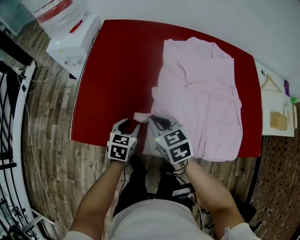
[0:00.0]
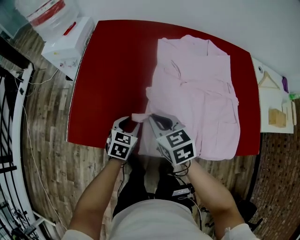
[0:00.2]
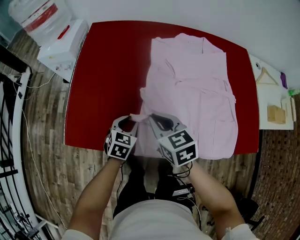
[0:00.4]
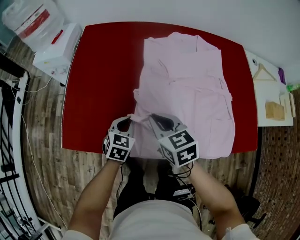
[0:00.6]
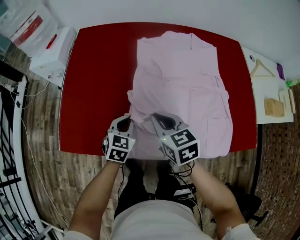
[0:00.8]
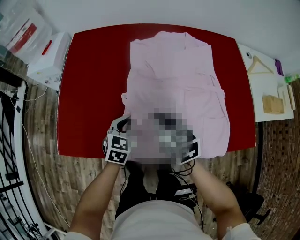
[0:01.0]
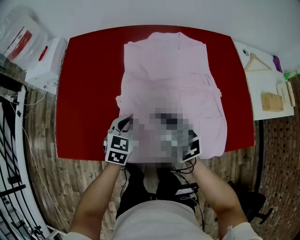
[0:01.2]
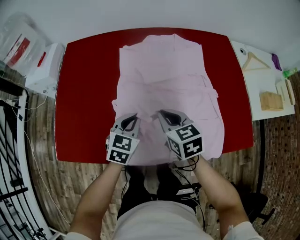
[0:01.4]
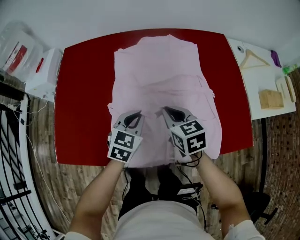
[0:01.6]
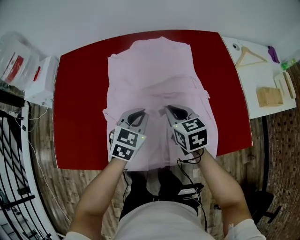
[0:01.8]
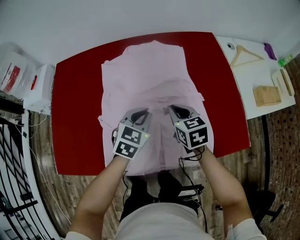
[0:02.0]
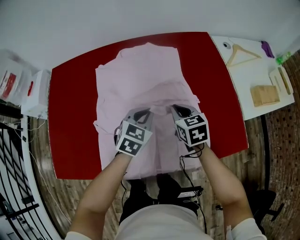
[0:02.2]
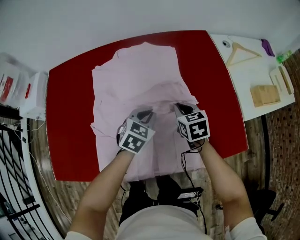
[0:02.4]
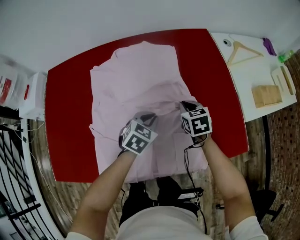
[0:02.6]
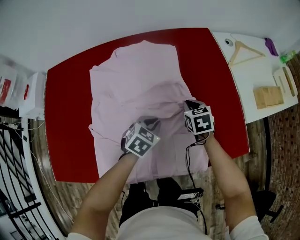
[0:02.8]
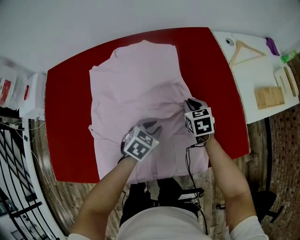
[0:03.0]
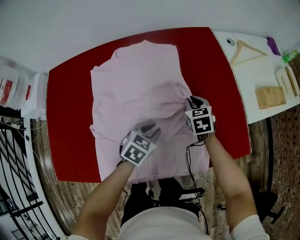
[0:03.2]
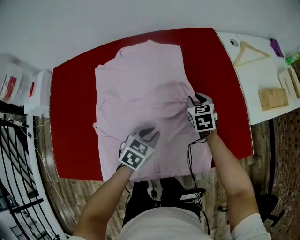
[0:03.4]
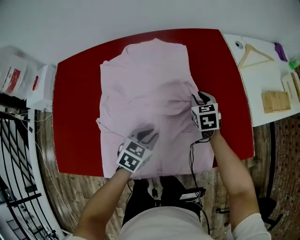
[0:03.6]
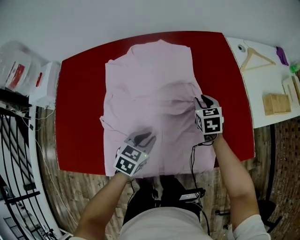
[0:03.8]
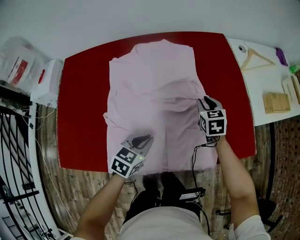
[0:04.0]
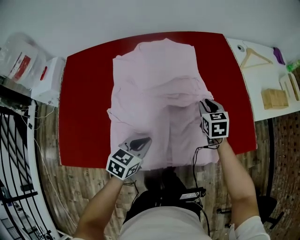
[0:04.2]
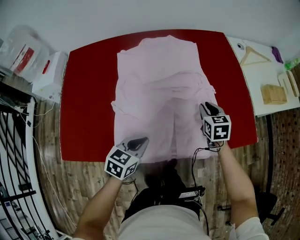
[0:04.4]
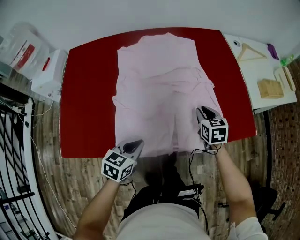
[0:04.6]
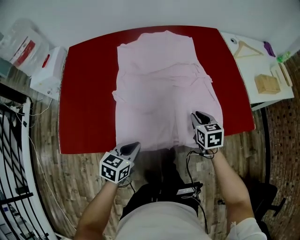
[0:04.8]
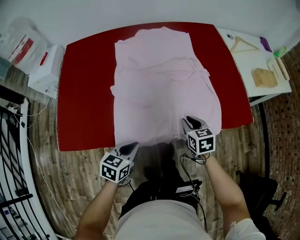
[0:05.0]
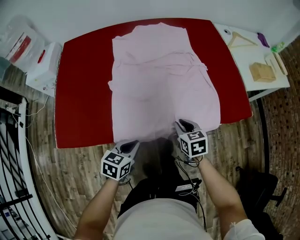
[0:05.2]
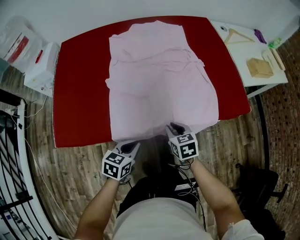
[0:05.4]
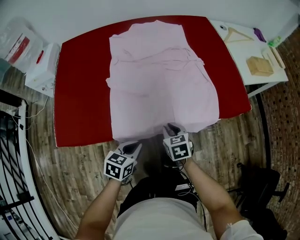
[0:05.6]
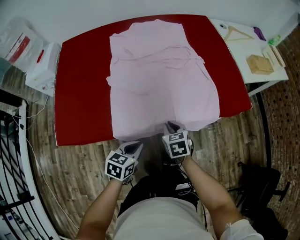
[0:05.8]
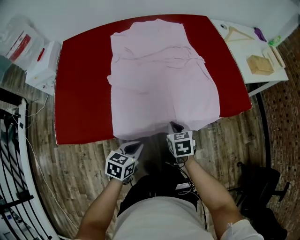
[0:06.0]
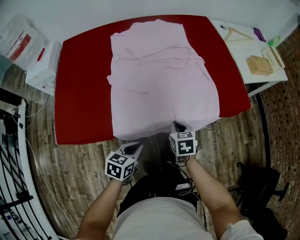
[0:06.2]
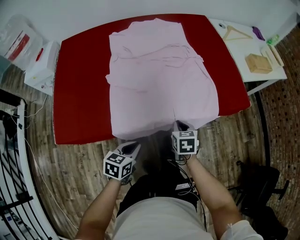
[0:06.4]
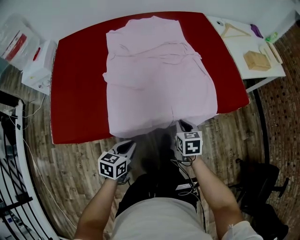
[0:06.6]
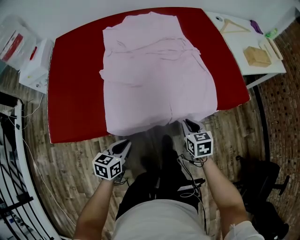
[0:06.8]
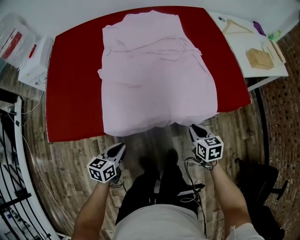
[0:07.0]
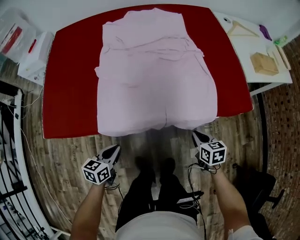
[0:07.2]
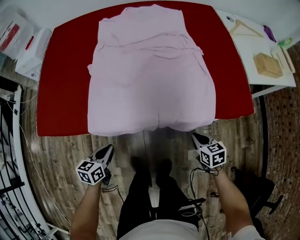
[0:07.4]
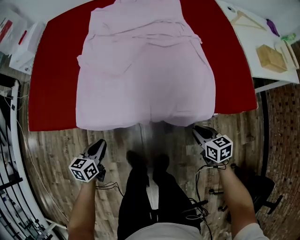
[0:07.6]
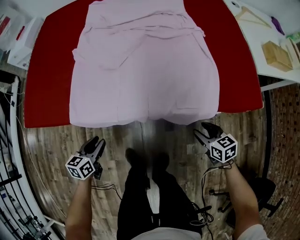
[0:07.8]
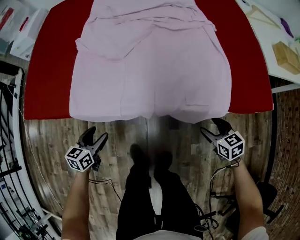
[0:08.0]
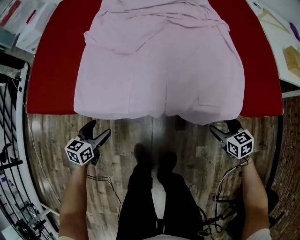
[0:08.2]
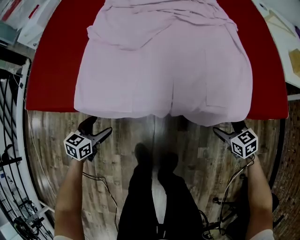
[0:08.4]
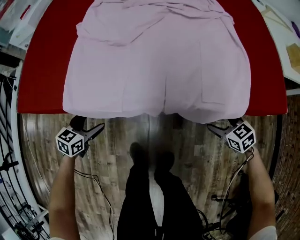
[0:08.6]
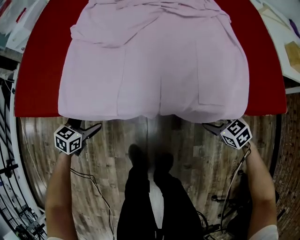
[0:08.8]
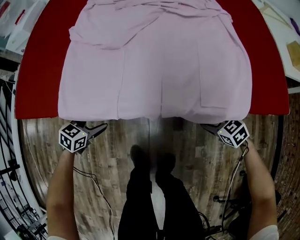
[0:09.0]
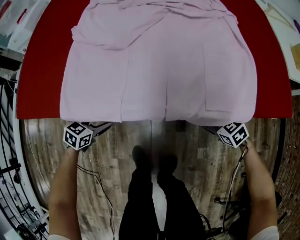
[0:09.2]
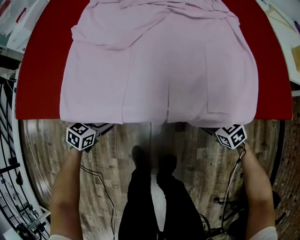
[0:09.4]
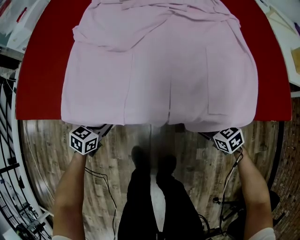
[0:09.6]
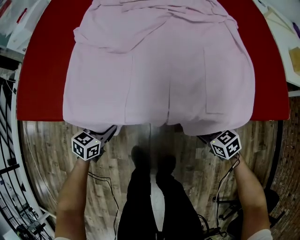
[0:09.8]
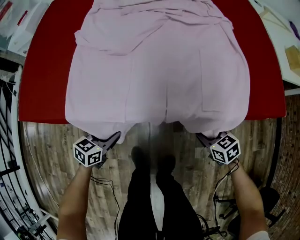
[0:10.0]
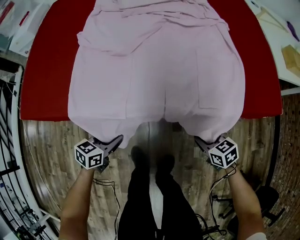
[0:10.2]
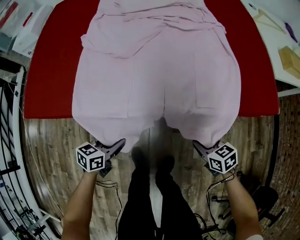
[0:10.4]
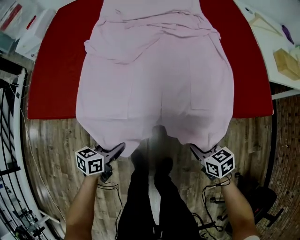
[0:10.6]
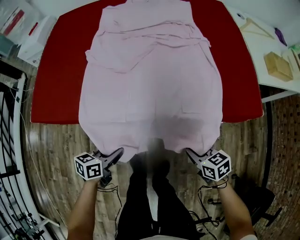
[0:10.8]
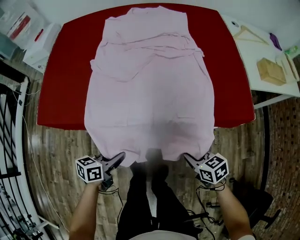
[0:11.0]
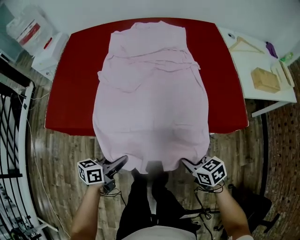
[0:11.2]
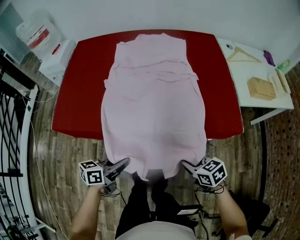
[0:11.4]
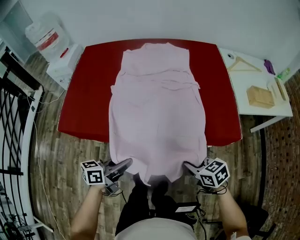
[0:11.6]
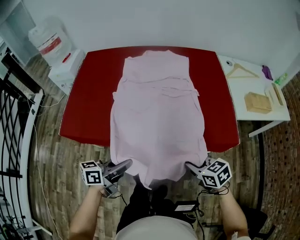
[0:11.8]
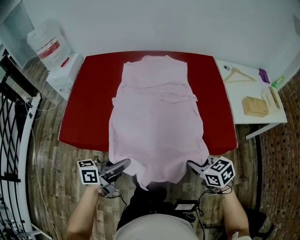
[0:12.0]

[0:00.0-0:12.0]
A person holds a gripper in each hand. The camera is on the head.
0:00.0 to 0:01.6: The right gripper shifts roughly 25 cm to the right, while the left gripper heads to the right and upward, covering roughly 25 cm, swivels roughly 20 degrees, and closes its fingers.
0:01.6 to 0:03.0: The right gripper moves to the right, forward and downward, some 25 cm. The left gripper heads to the right and downward, covering approximately 20 cm, and turns by about 30 degrees.
0:03.0 to 0:04.4: The right gripper shifts some 10 cm backward, while the left gripper shifts roughly 20 cm backward and to the left, and rotates some 20 degrees.
0:04.4 to 0:06.0: The right gripper is displaced backward by some 25 cm; the left gripper moves backward, roughly 15 cm.
0:06.0 to 0:07.6: The left gripper shifts approximately 10 cm downward, and swivels approximately 30 degrees. Meanwhile the right gripper shifts by about 25 cm.
0:07.6 to 0:09.0: The grippers both shift downward and forward by some 15 cm. The left gripper turns by roughly 30 degrees, and opens up. The right gripper turns by some 30 degrees, and opens.
0:09.0 to 0:10.4: The right gripper moves backward, to the left and upward, some 10 cm, changes its angle by some 20 degrees, and closes. Meanwhile the left gripper travels to the right, backward and upward by roughly 15 cm, changes its angle by about 30 degrees, and closes up.
0:10.4 to 0:12.0: The two grippers go roughly 30 cm upward. The left gripper swivels approximately 30 degrees.

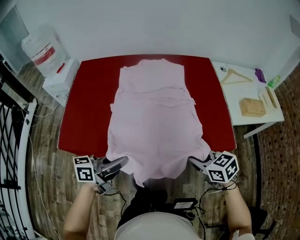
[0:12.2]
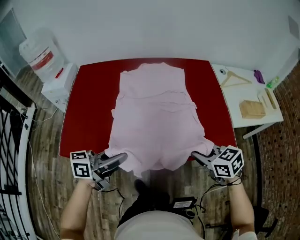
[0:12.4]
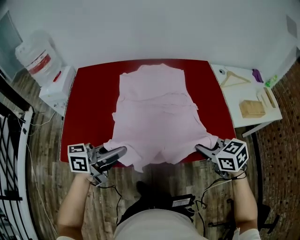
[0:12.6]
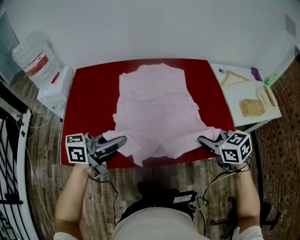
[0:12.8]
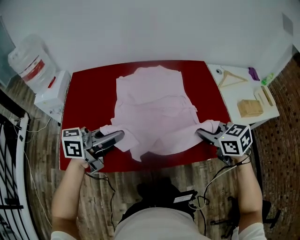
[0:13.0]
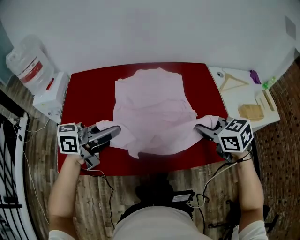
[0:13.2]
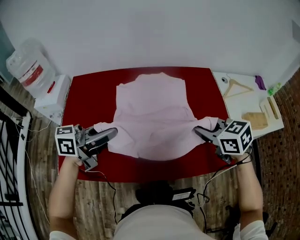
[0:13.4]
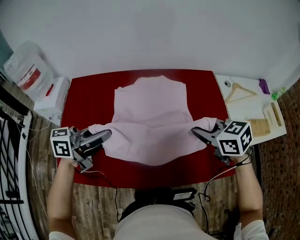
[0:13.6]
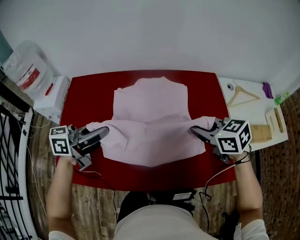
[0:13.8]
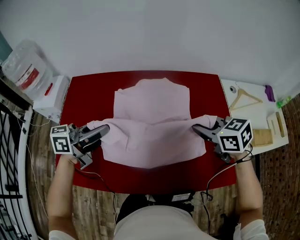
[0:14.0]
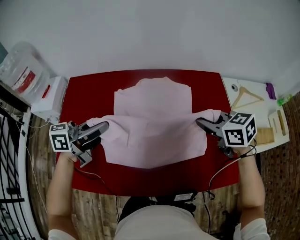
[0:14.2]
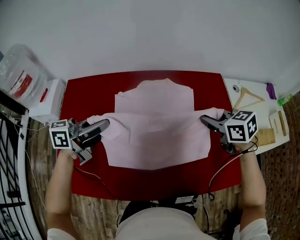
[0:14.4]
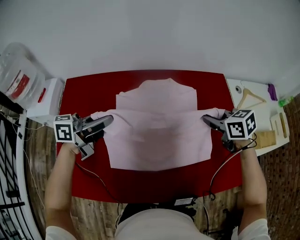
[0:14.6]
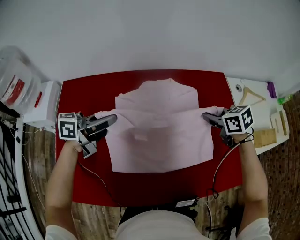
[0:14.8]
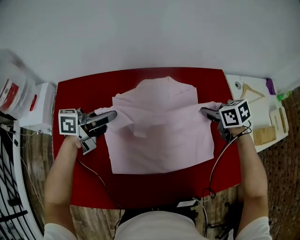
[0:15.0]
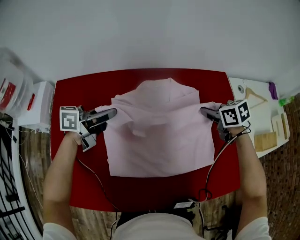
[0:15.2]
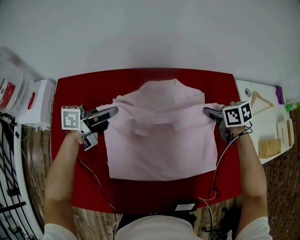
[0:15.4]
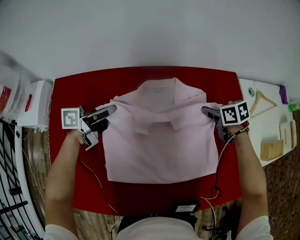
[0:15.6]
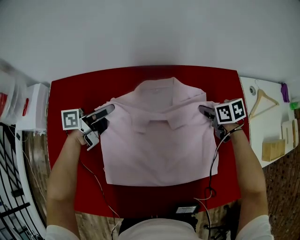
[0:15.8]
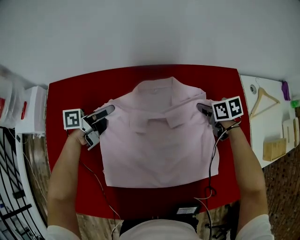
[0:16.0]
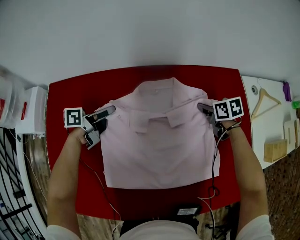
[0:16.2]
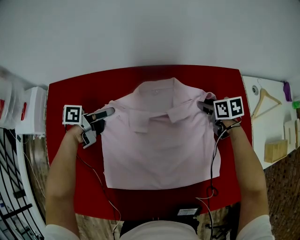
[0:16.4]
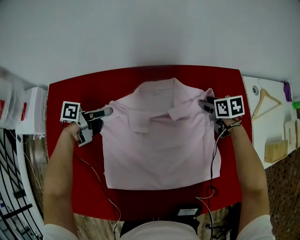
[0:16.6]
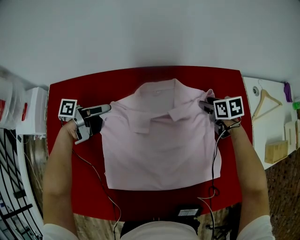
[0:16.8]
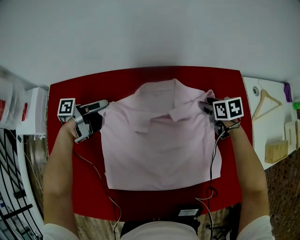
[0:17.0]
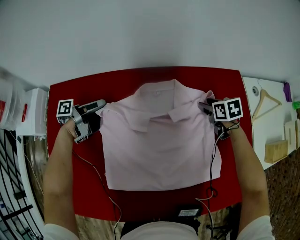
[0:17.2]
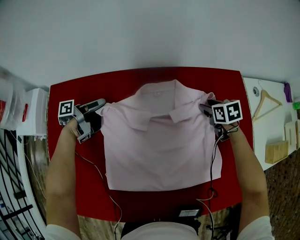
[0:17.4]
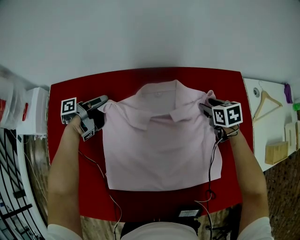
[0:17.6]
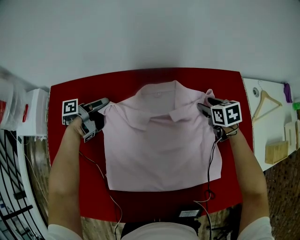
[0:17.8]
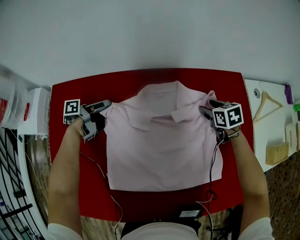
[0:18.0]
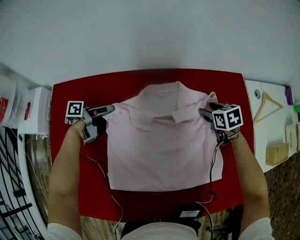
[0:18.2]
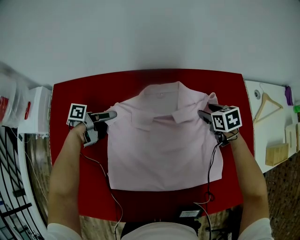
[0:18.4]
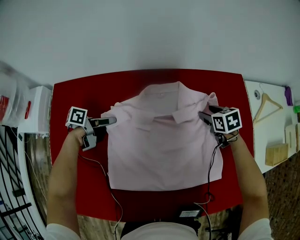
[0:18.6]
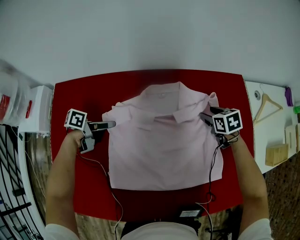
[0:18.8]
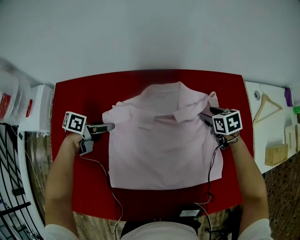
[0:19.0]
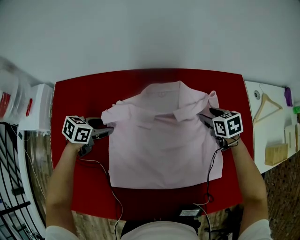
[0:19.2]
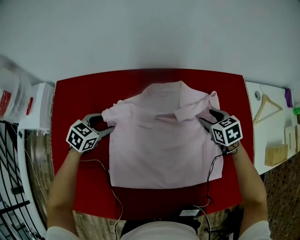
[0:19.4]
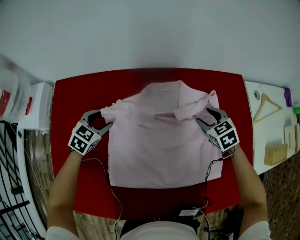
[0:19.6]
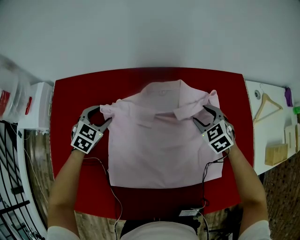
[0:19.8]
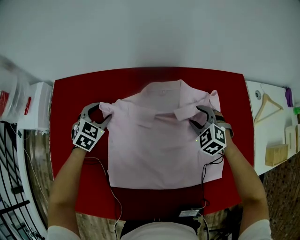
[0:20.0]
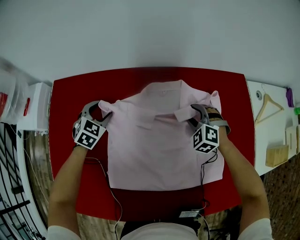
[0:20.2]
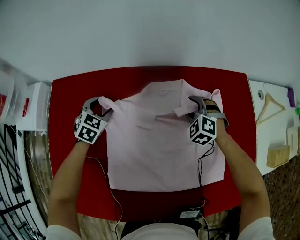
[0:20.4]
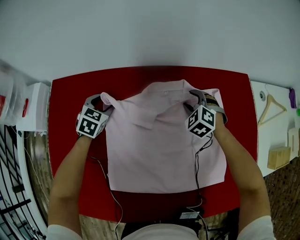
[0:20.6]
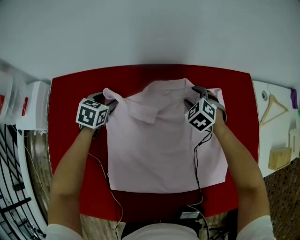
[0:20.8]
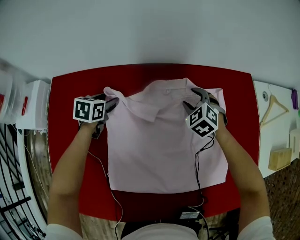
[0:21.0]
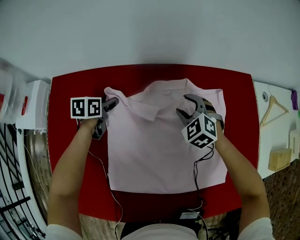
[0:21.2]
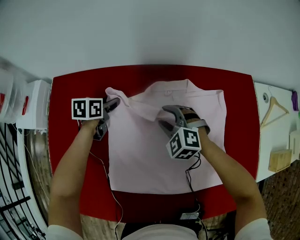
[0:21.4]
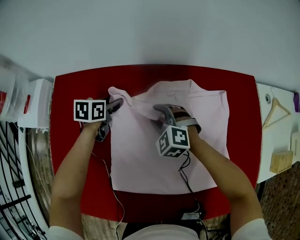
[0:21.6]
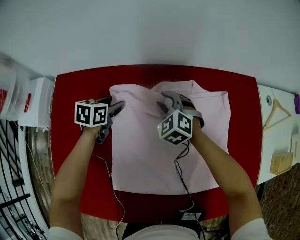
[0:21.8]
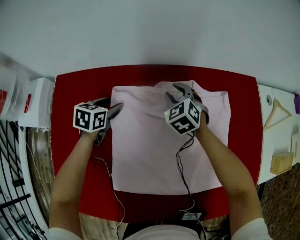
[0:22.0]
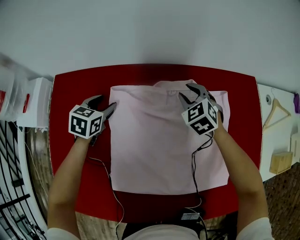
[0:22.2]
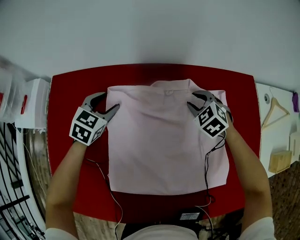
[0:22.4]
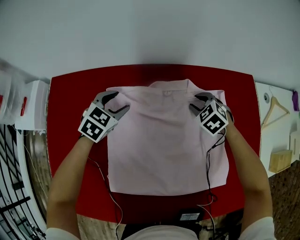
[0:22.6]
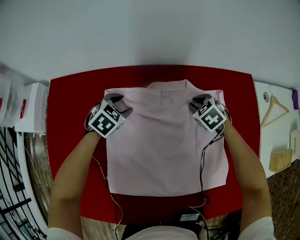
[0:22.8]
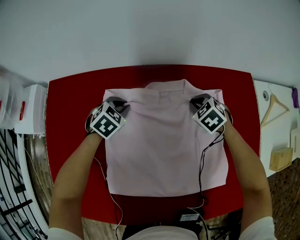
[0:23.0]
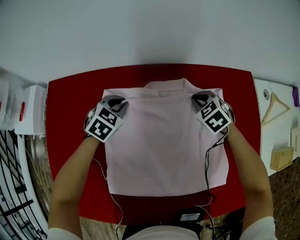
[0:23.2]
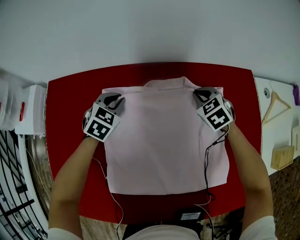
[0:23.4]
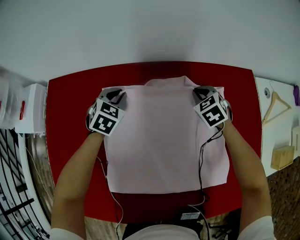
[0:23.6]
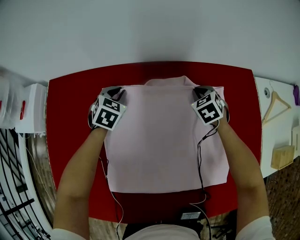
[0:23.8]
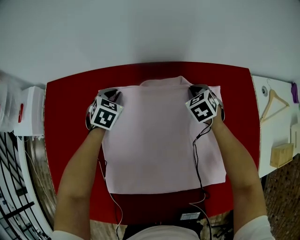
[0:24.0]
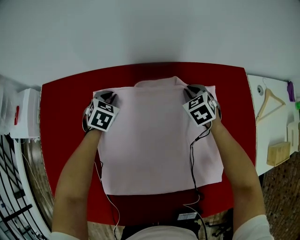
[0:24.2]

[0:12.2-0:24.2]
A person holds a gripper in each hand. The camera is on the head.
0:12.2 to 0:13.8: The grippers both shift forward by about 30 cm.
0:13.8 to 0:15.2: Both grippers move forward and downward, about 20 cm. The right gripper rotates approximately 20 degrees.
0:15.2 to 0:16.6: Both grippers move downward and forward, roughly 15 cm. The right gripper opens its fingers, while the left gripper swivels some 30 degrees, and opens up.
0:18.2 to 0:19.8: The left gripper twists approximately 90 degrees clockwise, seen from behind. The right gripper travels backward by approximately 5 cm, and rotates roughly 40 degrees.
0:19.8 to 0:21.2: The right gripper travels to the left by about 10 cm, while the left gripper moves forward, roughly 5 cm, and rolls counterclockwise, seen from behind, by roughly 50 degrees.
0:21.2 to 0:22.6: The right gripper reaches some 10 cm to the left, then returns. The left gripper heads to the right, covering approximately 5 cm, and rolls clockwise, seen from behind, by roughly 50 degrees.
0:22.6 to 0:24.2: The right gripper closes, while the left gripper goes approximately 5 cm downward, and closes its fingers.
